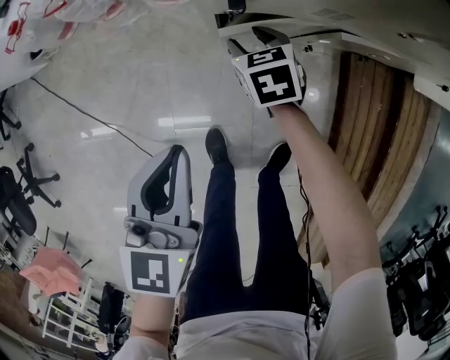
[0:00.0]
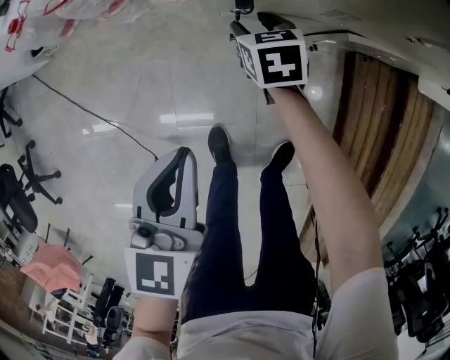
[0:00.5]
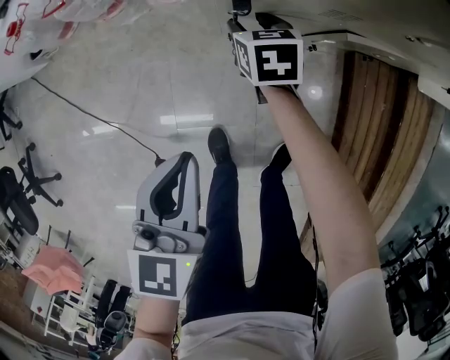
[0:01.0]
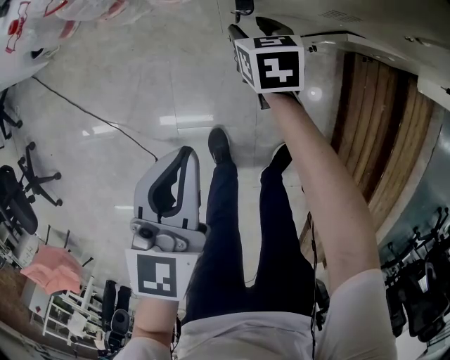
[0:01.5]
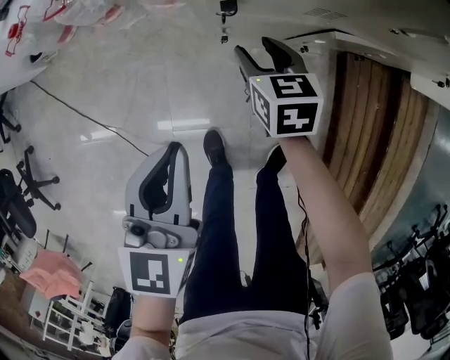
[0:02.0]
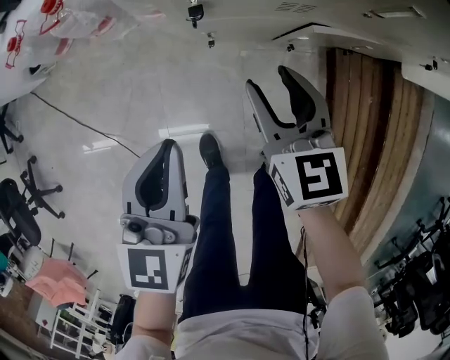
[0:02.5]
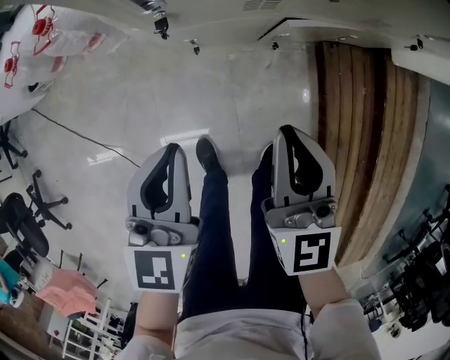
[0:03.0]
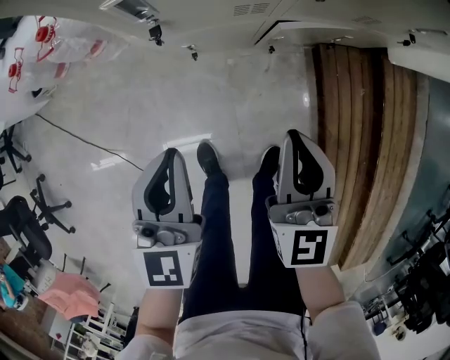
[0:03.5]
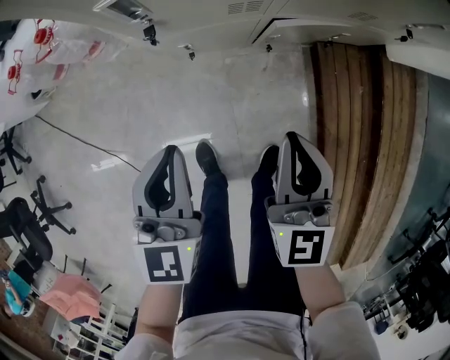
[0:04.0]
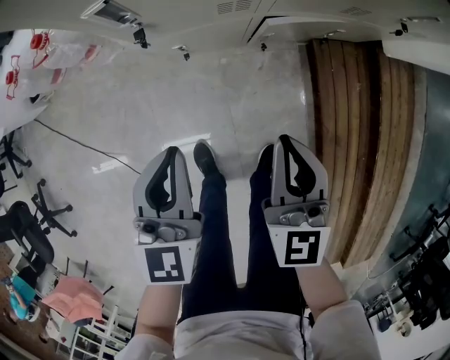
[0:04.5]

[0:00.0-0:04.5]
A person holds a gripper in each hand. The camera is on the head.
0:00.0 to 0:02.0: The right gripper ends up approximately 5 cm from where it was.
0:02.0 to 0:04.5: The left gripper shifts about 10 cm to the right. The right gripper is displaced upward, backward and to the right by approximately 30 cm, changes its angle by about 30 degrees, and closes.

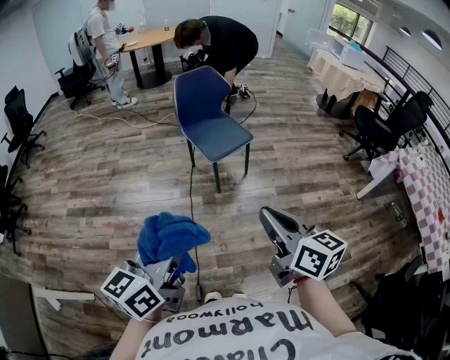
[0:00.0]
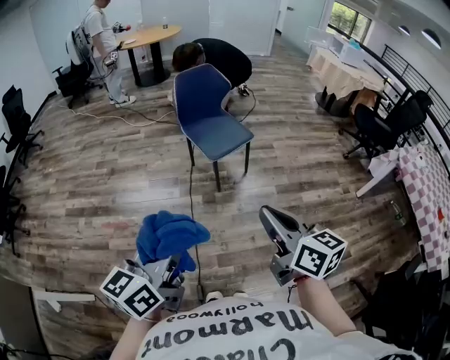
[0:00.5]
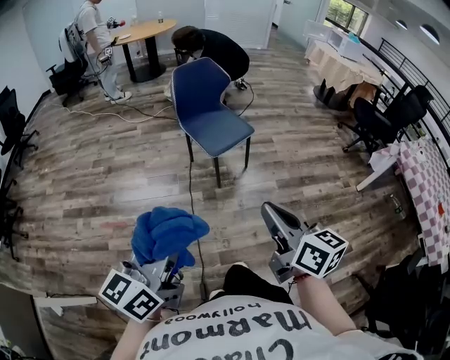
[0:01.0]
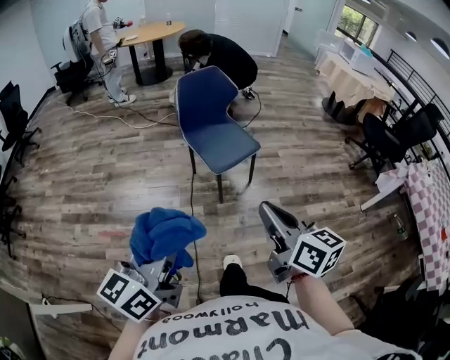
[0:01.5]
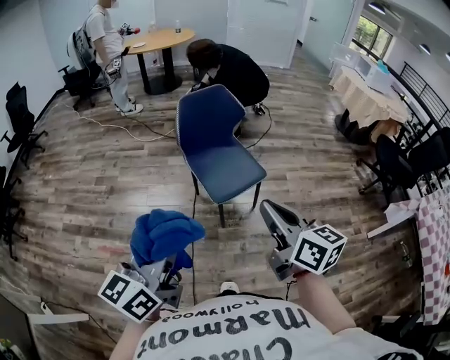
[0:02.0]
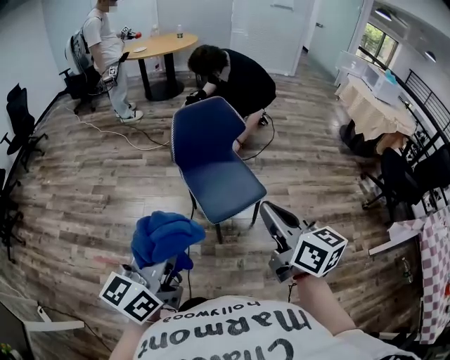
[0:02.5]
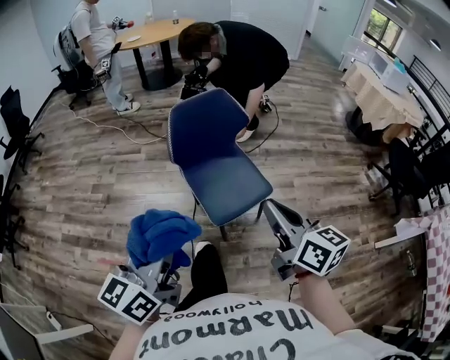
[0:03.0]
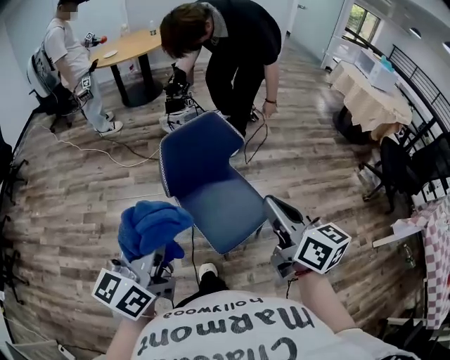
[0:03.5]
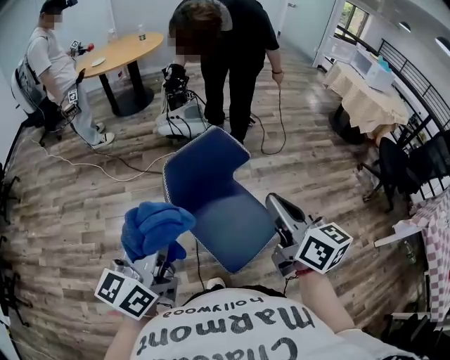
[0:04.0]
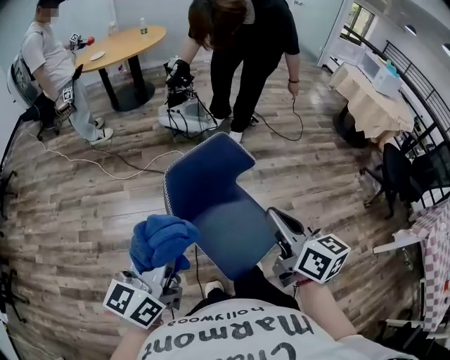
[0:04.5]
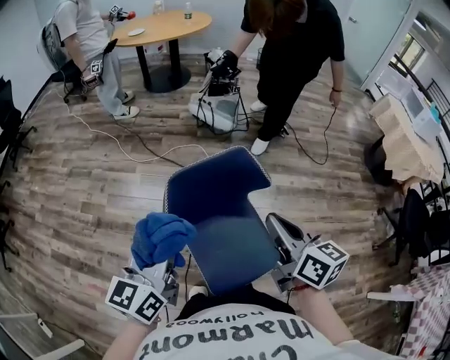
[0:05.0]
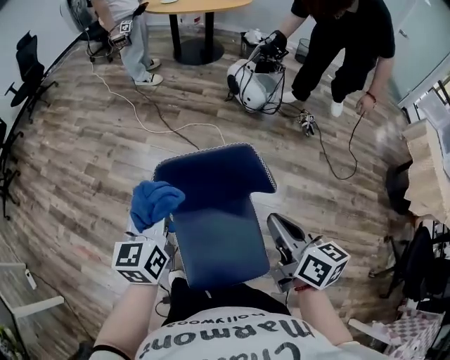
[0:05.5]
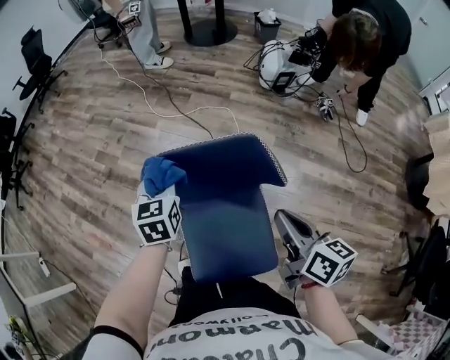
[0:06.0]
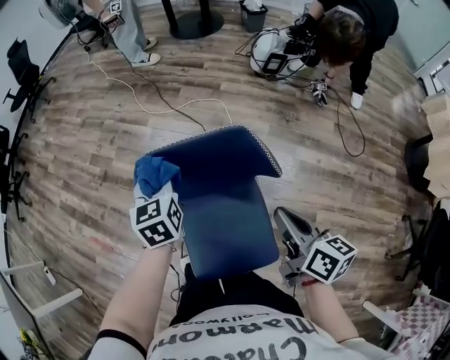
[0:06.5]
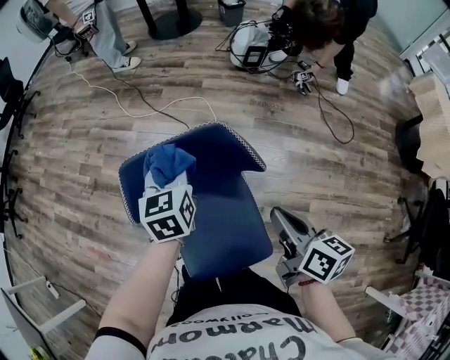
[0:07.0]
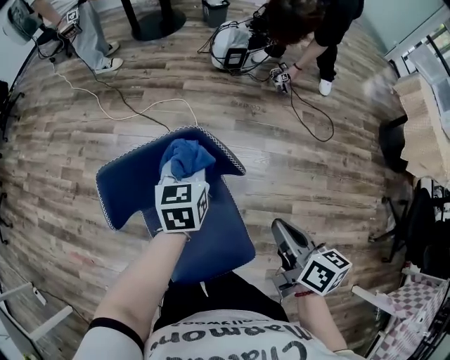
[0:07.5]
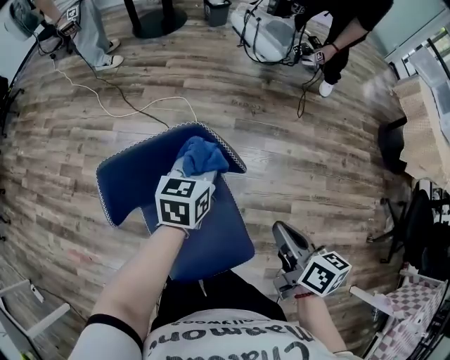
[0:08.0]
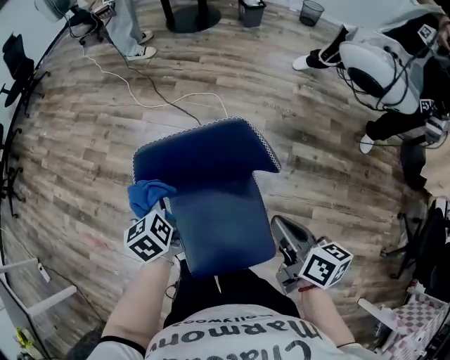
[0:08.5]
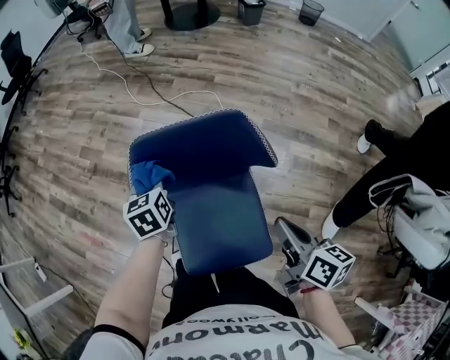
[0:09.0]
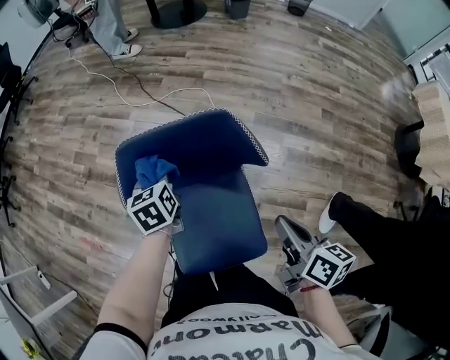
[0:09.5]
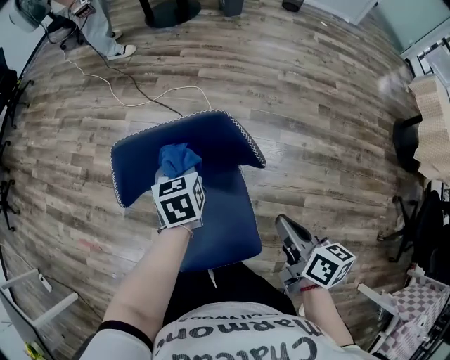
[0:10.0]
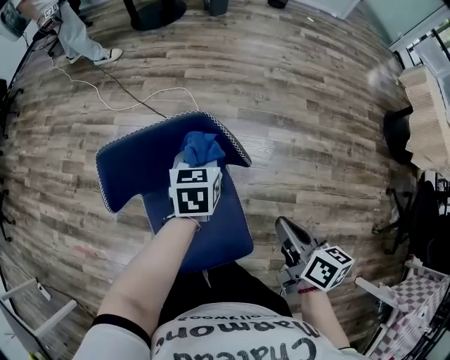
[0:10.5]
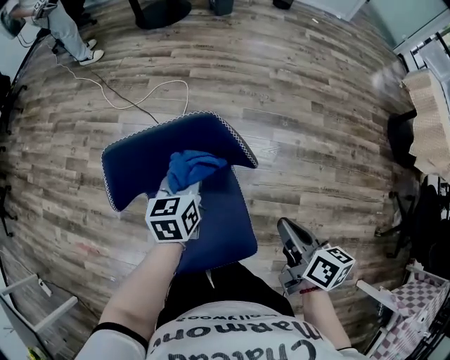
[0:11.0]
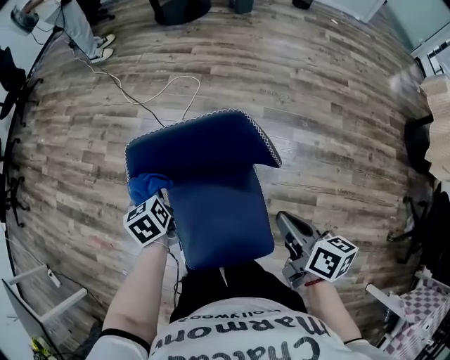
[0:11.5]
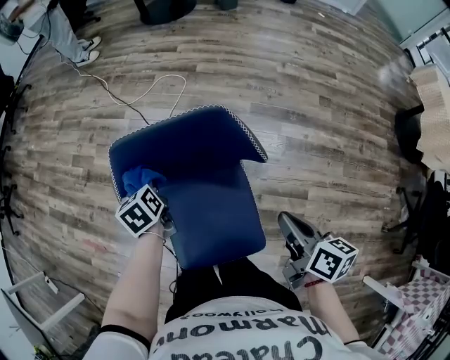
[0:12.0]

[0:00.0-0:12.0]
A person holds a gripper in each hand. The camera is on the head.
0:00.0 to 0:02.0: The grippers both shift forward by about 30 cm.
0:02.0 to 0:04.0: Both grippers travel together forward, roughly 40 cm.
0:04.0 to 0:06.0: The left gripper ends up roughly 35 cm from where it was, and points its fingers some 40 degrees further downward. The right gripper moves approximately 30 cm, and changes its angle by approximately 40 degrees.
0:06.0 to 0:08.0: The right gripper changes place by some 10 cm. Meanwhile the left gripper ends up approximately 25 cm from where it was, and changes its angle by approximately 30 degrees.
0:08.0 to 0:10.0: The left gripper rotates some 30 degrees.
0:10.0 to 0:12.0: The left gripper moves to the left, roughly 15 cm.

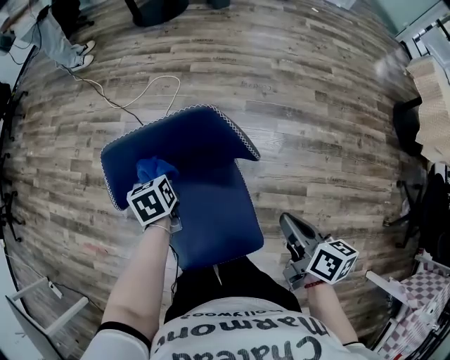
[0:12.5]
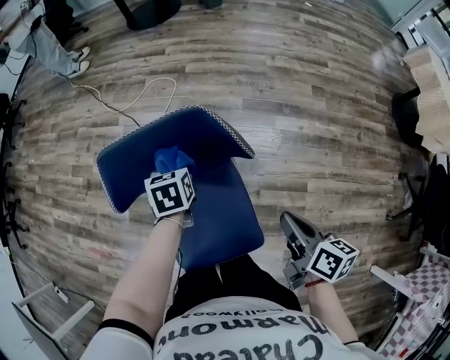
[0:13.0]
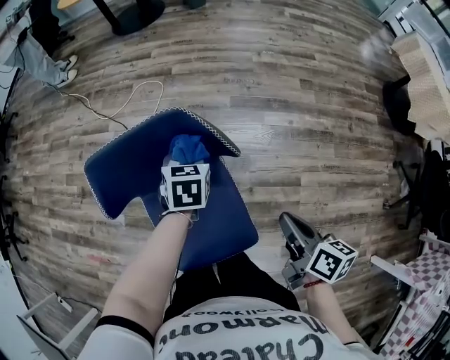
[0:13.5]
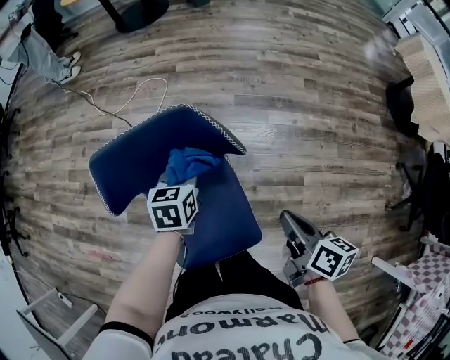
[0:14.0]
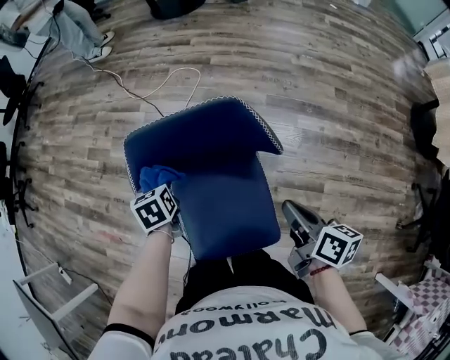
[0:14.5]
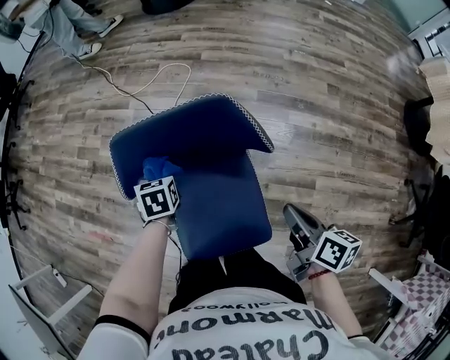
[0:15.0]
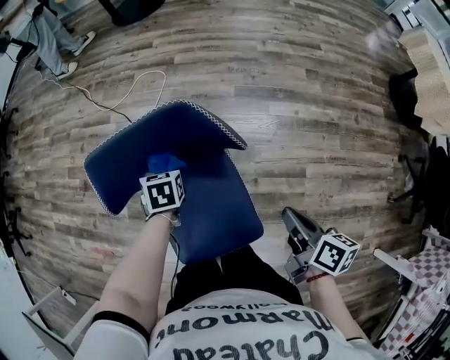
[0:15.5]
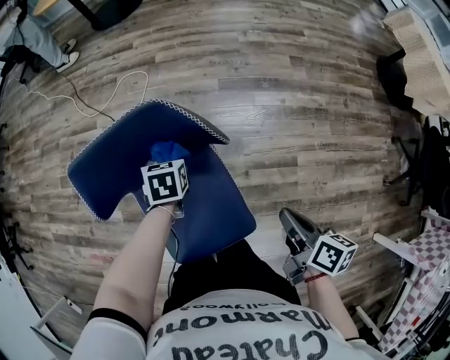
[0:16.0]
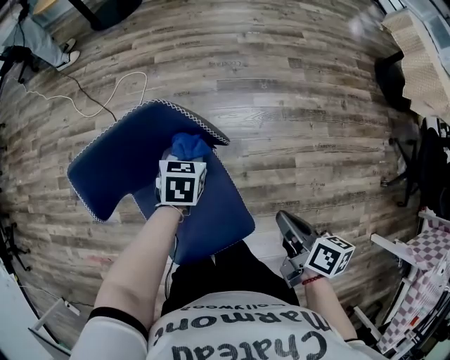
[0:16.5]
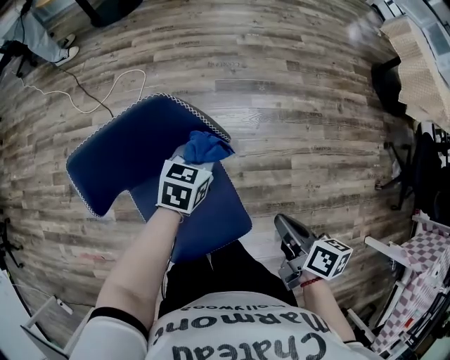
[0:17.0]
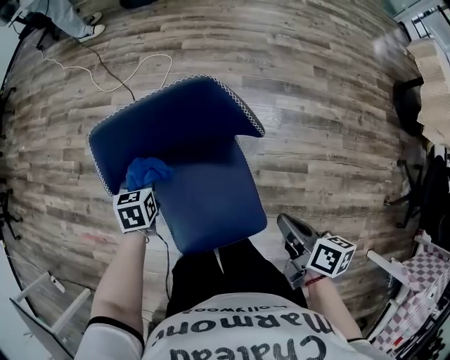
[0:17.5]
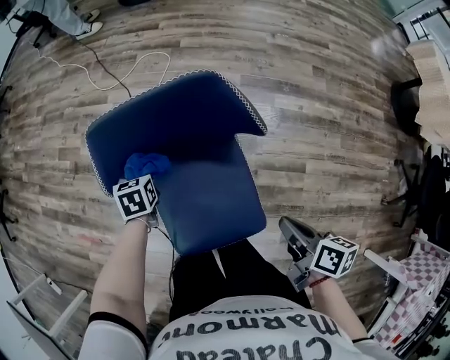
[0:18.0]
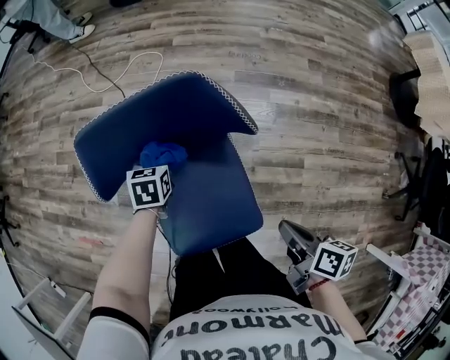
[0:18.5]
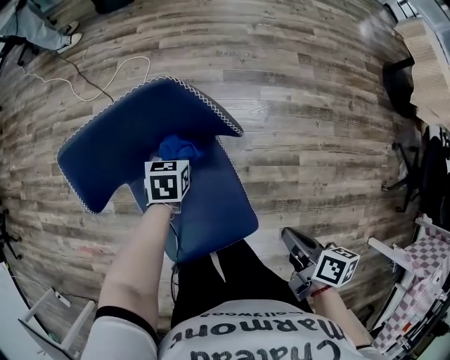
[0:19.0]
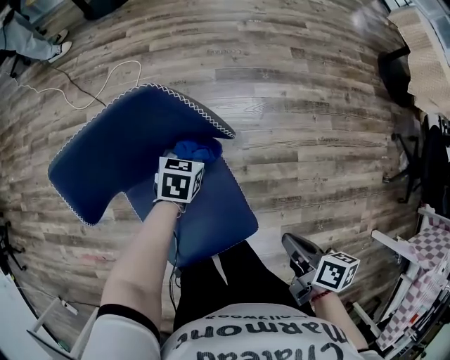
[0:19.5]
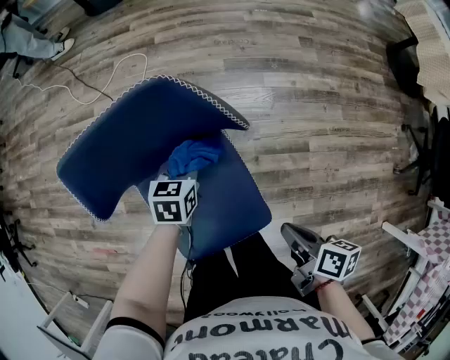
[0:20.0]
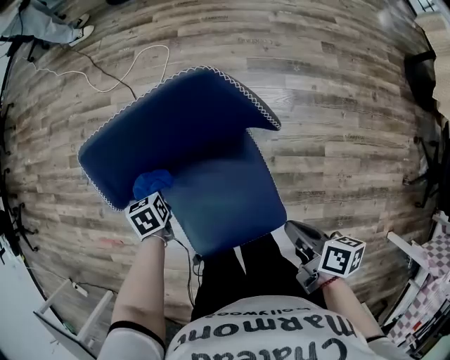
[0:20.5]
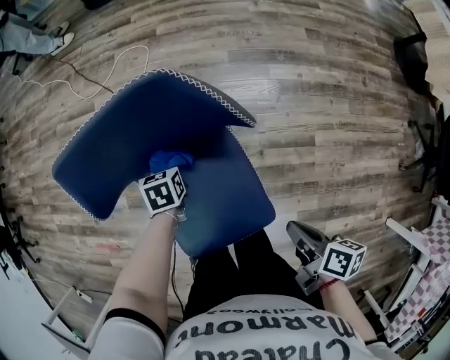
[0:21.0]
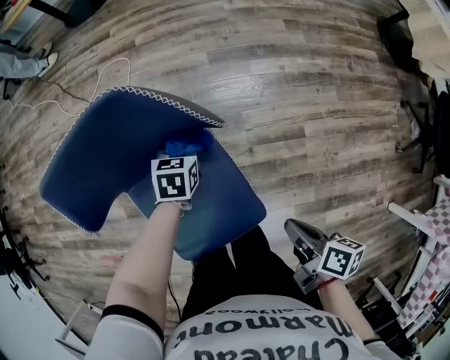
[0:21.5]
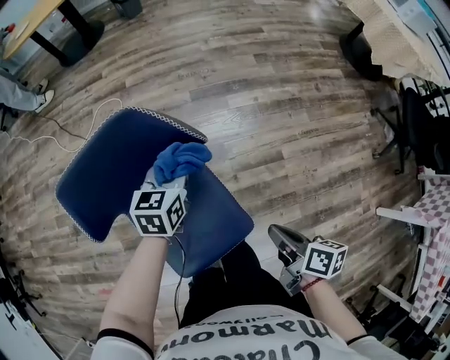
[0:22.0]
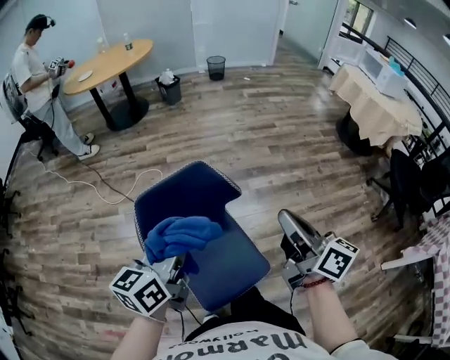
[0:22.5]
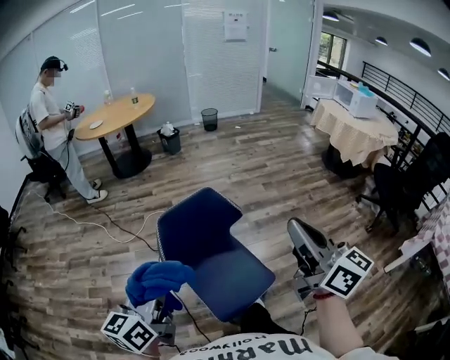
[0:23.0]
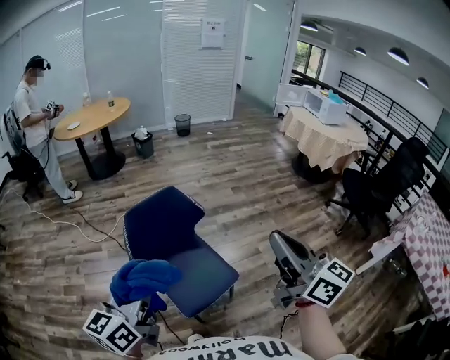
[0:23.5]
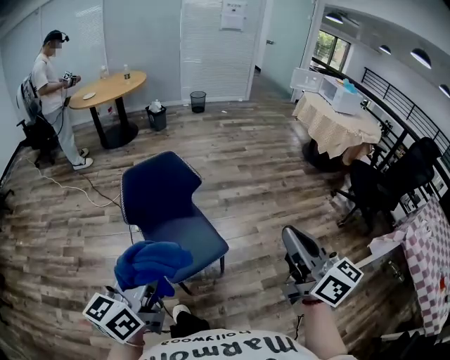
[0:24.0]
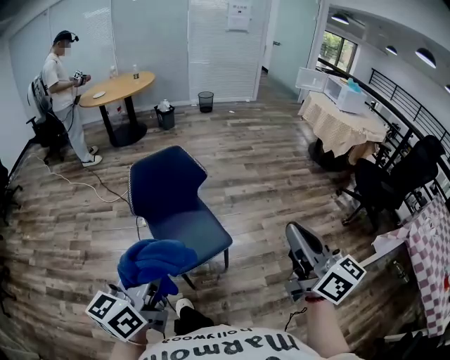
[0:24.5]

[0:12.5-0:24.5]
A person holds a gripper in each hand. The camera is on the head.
0:14.5 to 0:16.5: The right gripper changes place by roughly 10 cm. The left gripper ends up about 30 cm from where it was, and swivels about 40 degrees.
0:16.5 to 0:18.5: The left gripper moves about 20 cm. Meanwhile the right gripper shifts by approximately 5 cm.
0:18.5 to 0:20.5: The left gripper ends up approximately 15 cm from where it was; the right gripper moves about 5 cm.
0:20.5 to 0:22.5: Both grippers travel together upward, some 35 cm. The right gripper tilts its fingers some 40 degrees upward. Meanwhile the left gripper tilts its fingers about 50 degrees upward.
0:22.5 to 0:24.5: Both grippers move backward, about 35 cm. The right gripper changes its angle by roughly 20 degrees.
